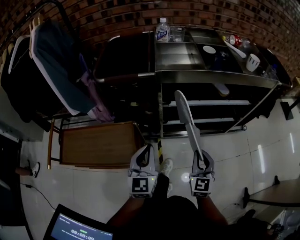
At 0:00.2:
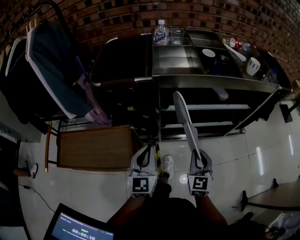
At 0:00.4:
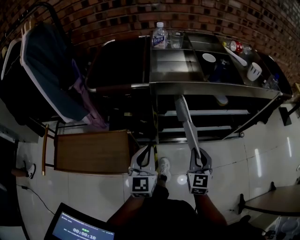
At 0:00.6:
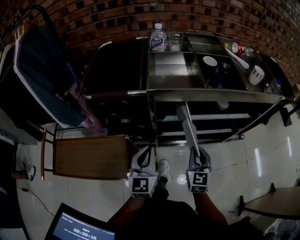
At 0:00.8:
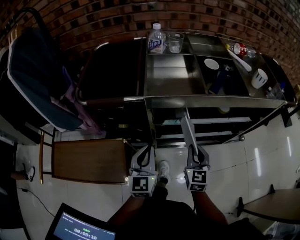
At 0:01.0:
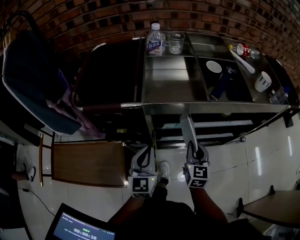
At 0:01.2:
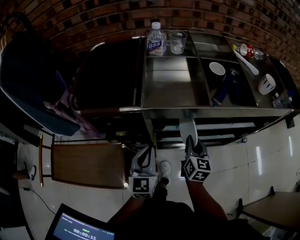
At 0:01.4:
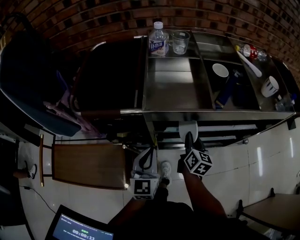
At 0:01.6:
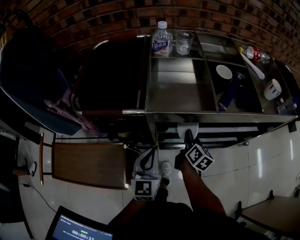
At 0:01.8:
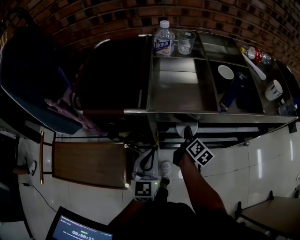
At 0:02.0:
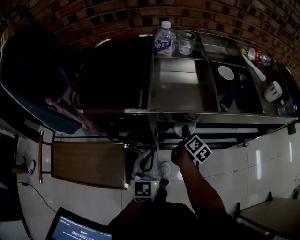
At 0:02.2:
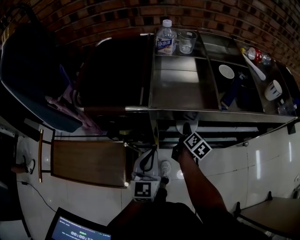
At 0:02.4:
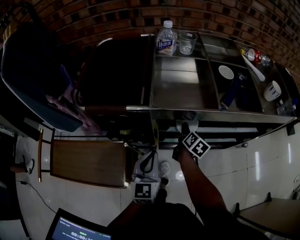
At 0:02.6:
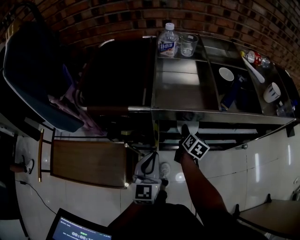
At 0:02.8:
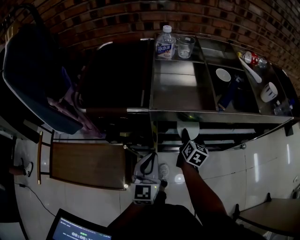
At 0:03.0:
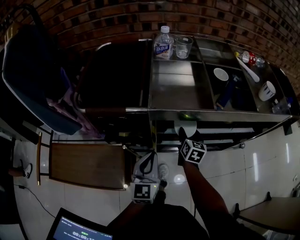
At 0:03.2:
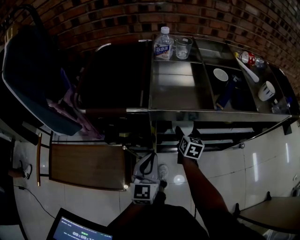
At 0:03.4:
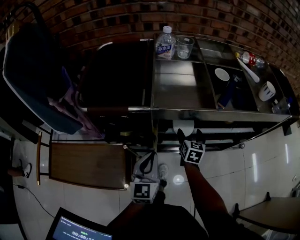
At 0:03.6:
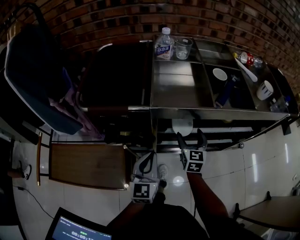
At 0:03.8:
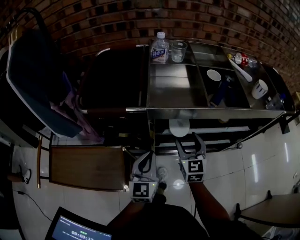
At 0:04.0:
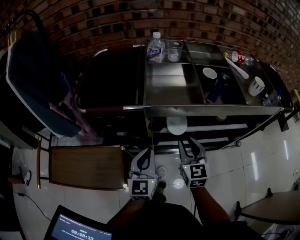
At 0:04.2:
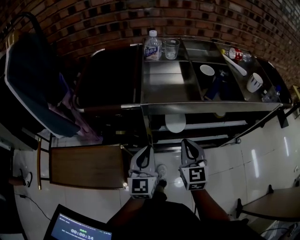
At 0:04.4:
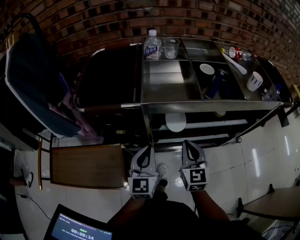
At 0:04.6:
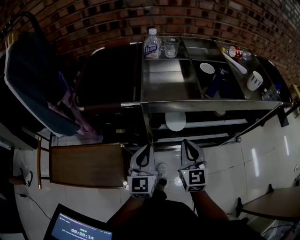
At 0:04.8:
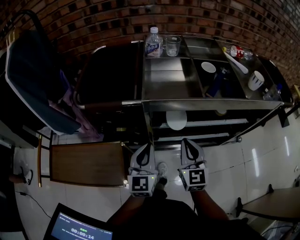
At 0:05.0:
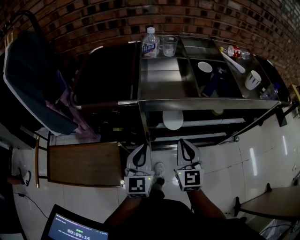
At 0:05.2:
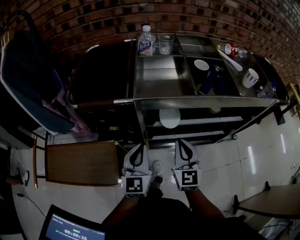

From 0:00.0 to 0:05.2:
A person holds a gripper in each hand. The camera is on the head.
From 0:00.0 to 0:01.8: The left gripper goes about 20 cm forward. Meanwhile the right gripper goes roughly 30 cm forward, and rotates around the line of its fingers by approximately 60 degrees, clockwise from behind.
From 0:01.8 to 0:03.4: The right gripper rolls counterclockwise, seen from behind, by roughly 40 degrees, and opens.
From 0:03.4 to 0:05.2: The right gripper is displaced upward and backward by approximately 20 cm, turns by roughly 30 degrees, and closes its fingers.

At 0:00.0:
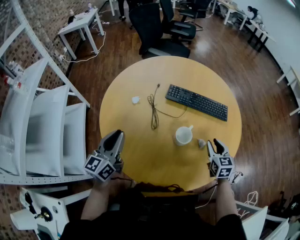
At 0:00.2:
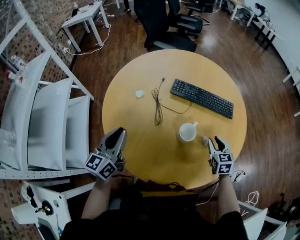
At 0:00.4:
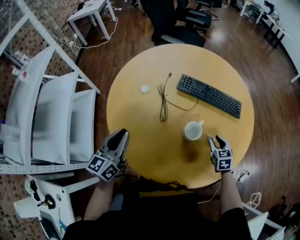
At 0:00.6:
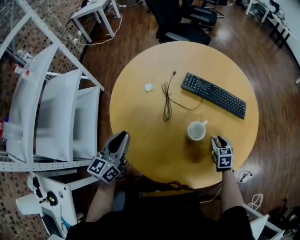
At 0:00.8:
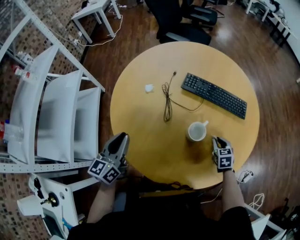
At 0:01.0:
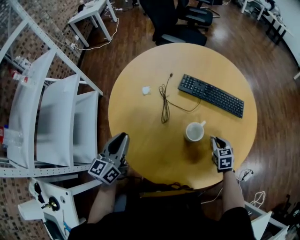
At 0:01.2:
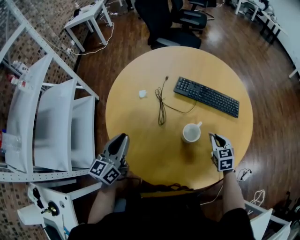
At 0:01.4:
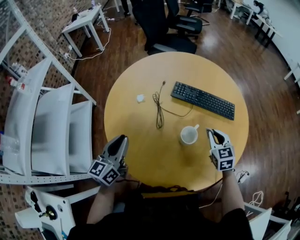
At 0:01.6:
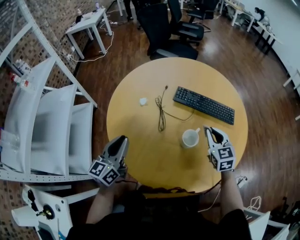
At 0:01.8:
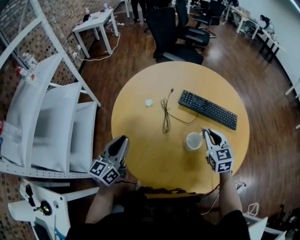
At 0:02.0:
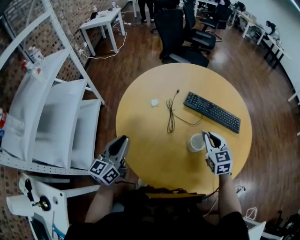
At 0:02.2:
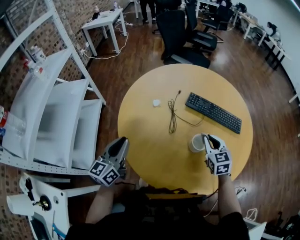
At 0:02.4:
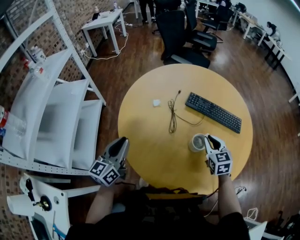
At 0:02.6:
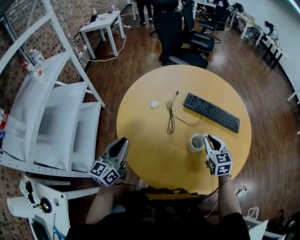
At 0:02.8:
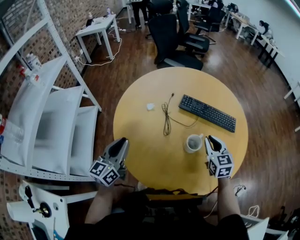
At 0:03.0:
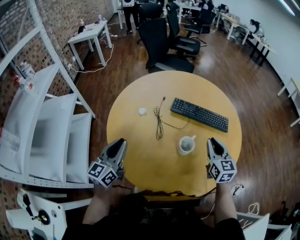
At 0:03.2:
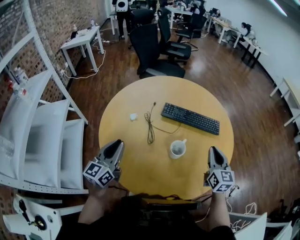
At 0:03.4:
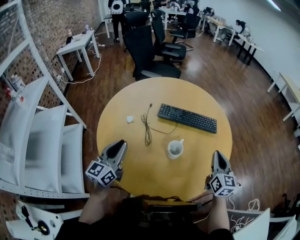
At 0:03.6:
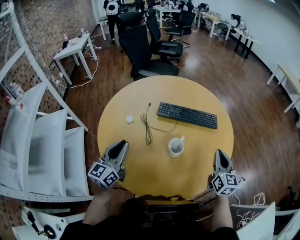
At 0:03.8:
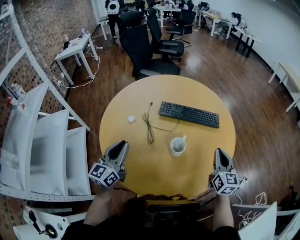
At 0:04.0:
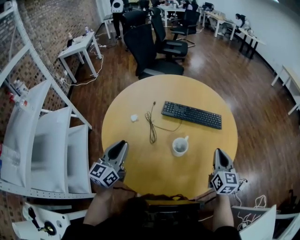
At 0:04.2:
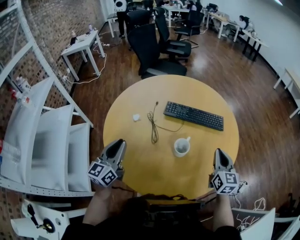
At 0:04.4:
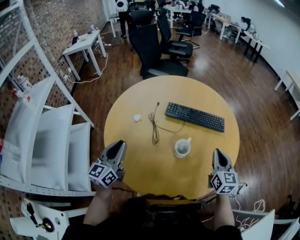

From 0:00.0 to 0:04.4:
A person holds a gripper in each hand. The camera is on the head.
From 0:00.0 to 0:01.4: The right gripper is displaced forward by some 5 cm, goes downward and returns, approximately 10 cm each way, and closes its fingers.
From 0:01.4 to 0:03.0: The right gripper heads upward, covering approximately 10 cm, and goes to the left and returns, approximately 10 cm each way.
From 0:03.0 to 0:04.4: The right gripper moves to the right, roughly 5 cm.

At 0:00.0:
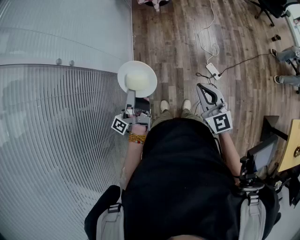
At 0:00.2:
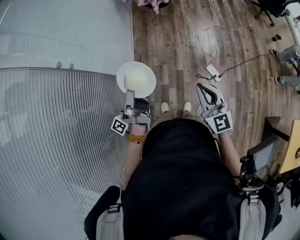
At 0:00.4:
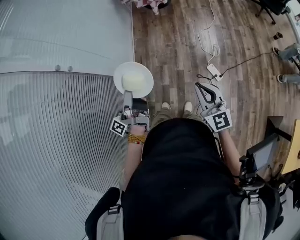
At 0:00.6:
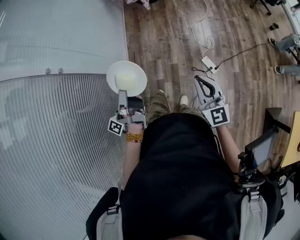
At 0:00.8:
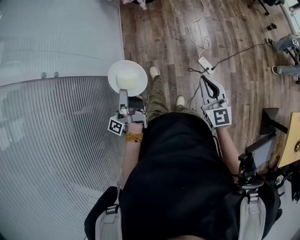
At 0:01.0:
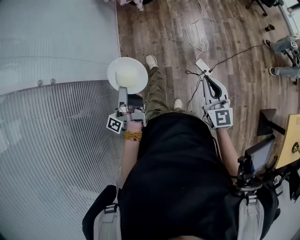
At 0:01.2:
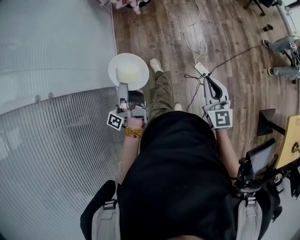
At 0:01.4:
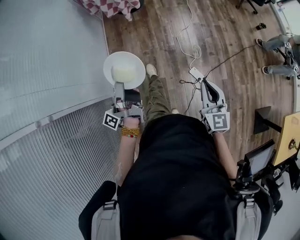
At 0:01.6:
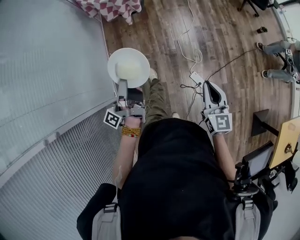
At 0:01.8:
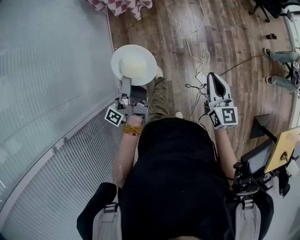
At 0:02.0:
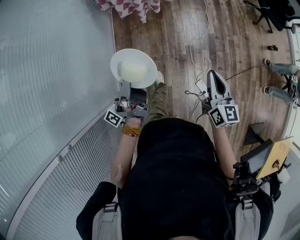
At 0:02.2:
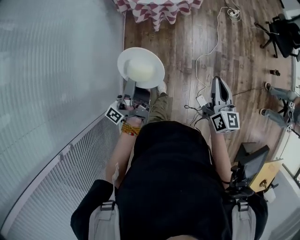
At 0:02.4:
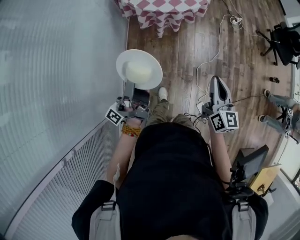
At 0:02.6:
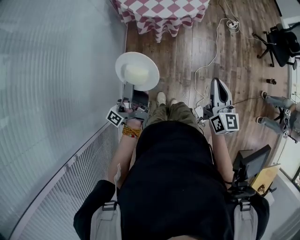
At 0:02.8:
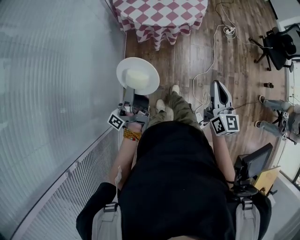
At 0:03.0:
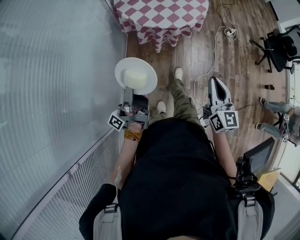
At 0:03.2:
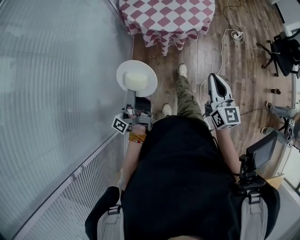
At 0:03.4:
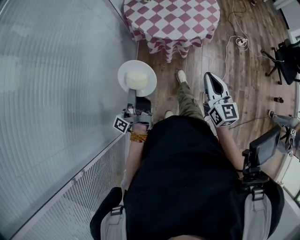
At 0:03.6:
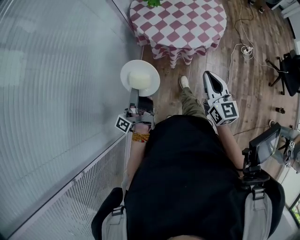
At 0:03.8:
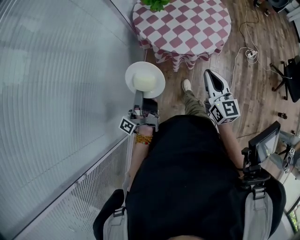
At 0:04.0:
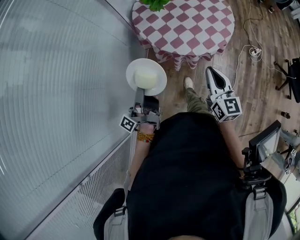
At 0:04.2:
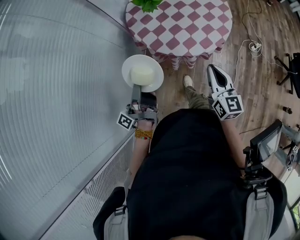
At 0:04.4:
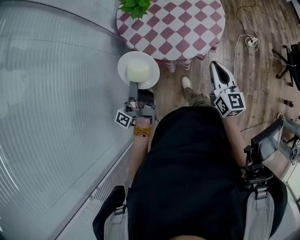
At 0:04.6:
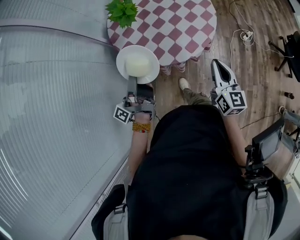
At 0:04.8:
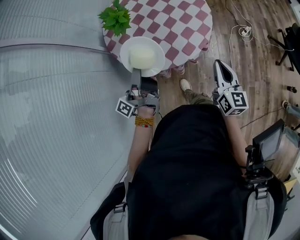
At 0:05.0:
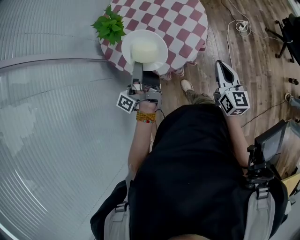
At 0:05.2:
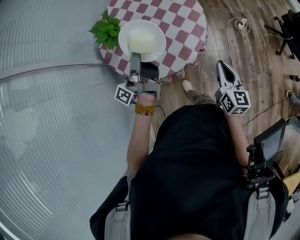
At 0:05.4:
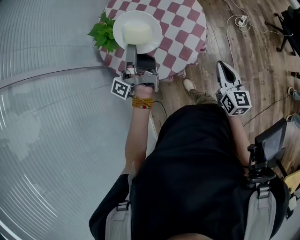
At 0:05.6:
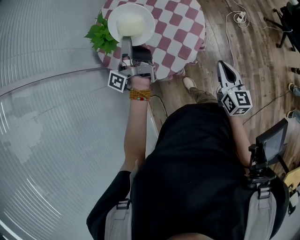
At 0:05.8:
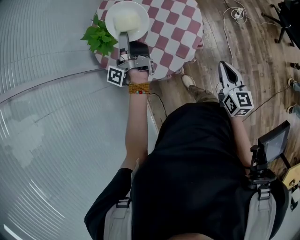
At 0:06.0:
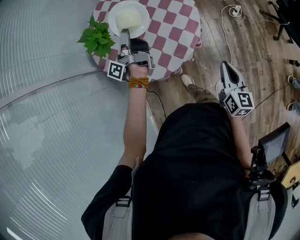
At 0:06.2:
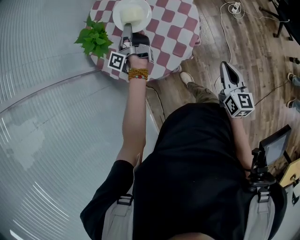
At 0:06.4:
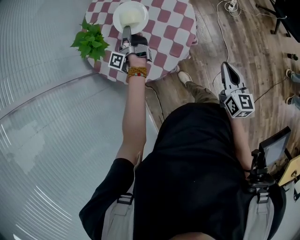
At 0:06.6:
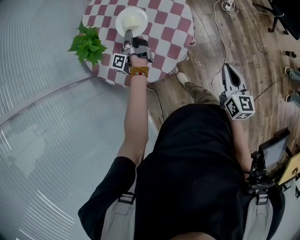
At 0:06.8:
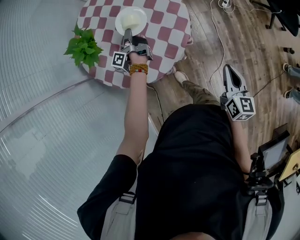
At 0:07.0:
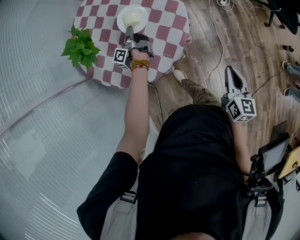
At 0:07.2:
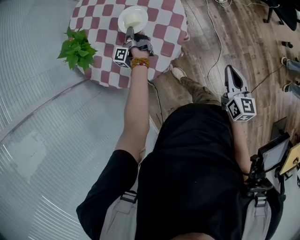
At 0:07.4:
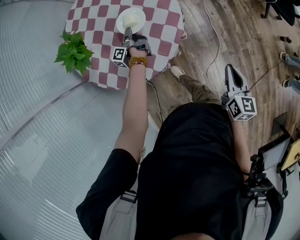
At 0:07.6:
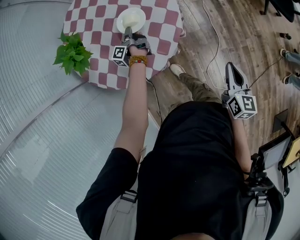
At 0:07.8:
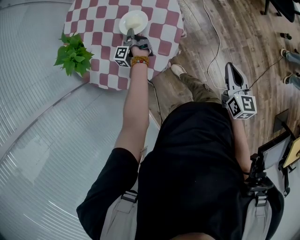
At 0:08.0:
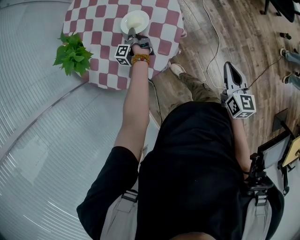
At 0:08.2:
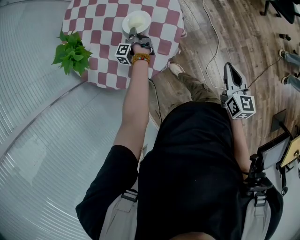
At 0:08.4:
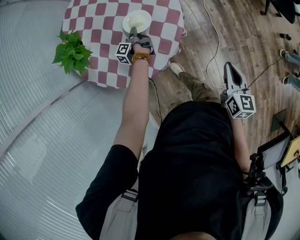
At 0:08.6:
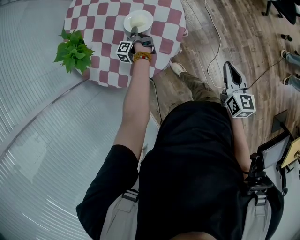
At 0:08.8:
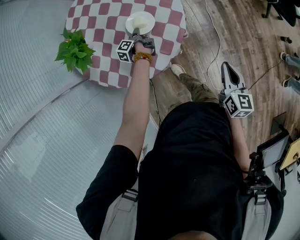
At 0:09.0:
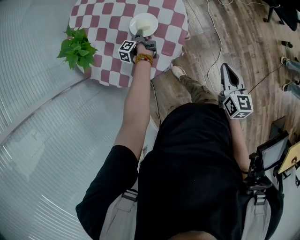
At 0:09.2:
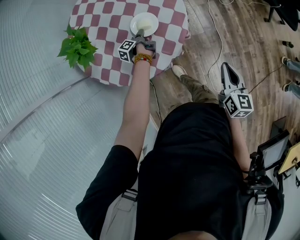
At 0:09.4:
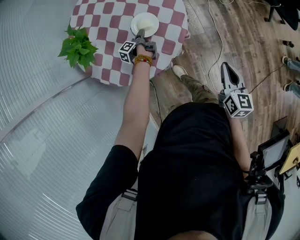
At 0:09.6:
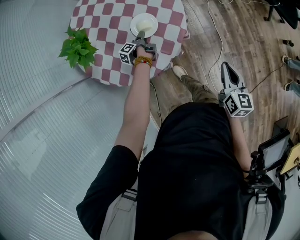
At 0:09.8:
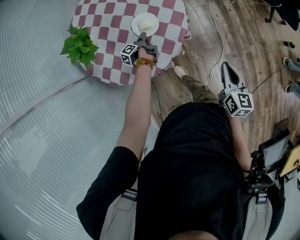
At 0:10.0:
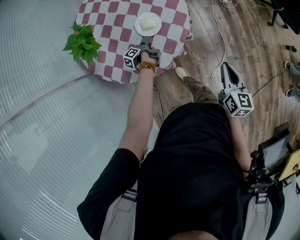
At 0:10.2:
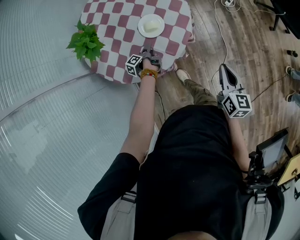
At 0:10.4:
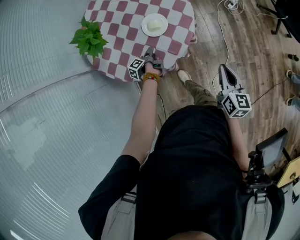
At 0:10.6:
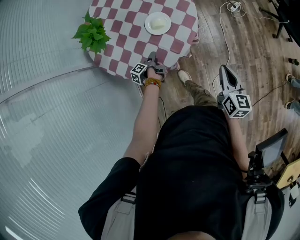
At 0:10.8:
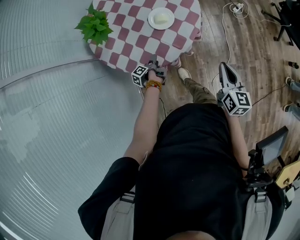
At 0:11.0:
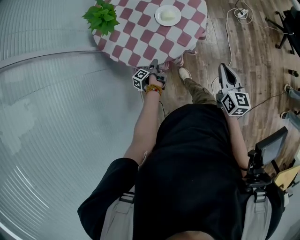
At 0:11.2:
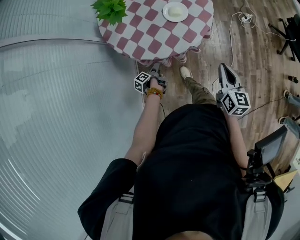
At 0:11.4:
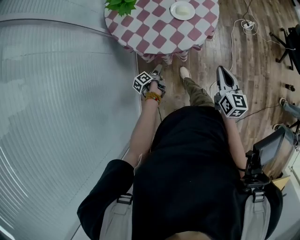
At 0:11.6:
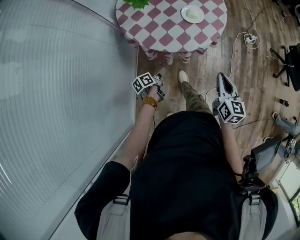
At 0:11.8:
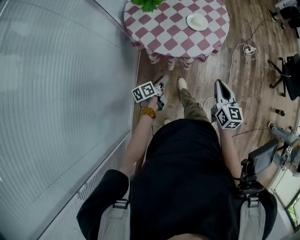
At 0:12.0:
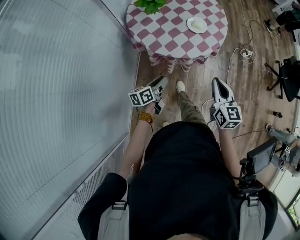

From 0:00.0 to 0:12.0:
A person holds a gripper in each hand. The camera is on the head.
From 0:00.0 to 0:01.6: The right gripper changes place by approximately 30 cm, and rotates roughly 30 degrees.
From 0:01.6 to 0:03.0: The right gripper ends up some 40 cm from where it was.
From 0:03.0 to 0:04.4: The right gripper moves roughly 40 cm.
From 0:04.4 to 0:06.0: The right gripper moves approximately 20 cm, and turns by roughly 30 degrees.
From 0:06.0 to 0:07.6: The right gripper shifts by roughly 10 cm.
From 0:10.4 to 0:12.0: The right gripper shifts by roughly 25 cm, and rotates roughly 30 degrees.

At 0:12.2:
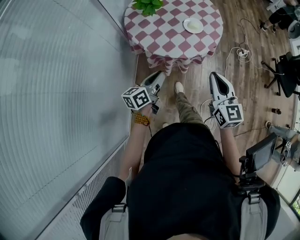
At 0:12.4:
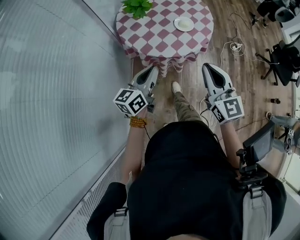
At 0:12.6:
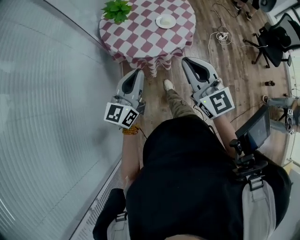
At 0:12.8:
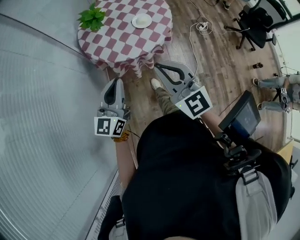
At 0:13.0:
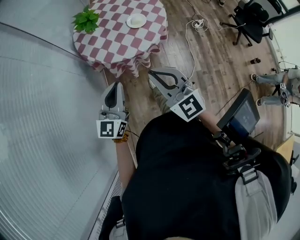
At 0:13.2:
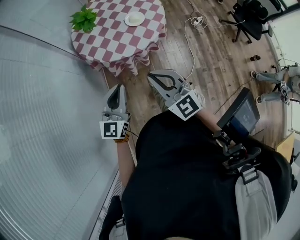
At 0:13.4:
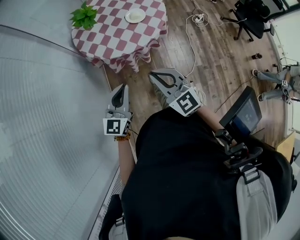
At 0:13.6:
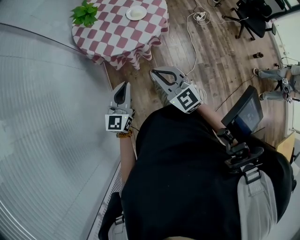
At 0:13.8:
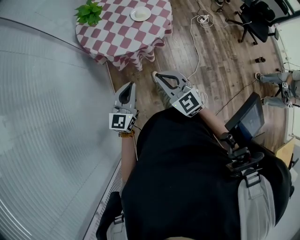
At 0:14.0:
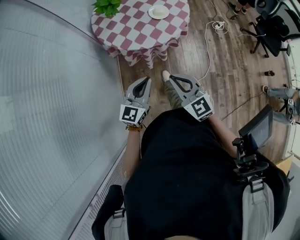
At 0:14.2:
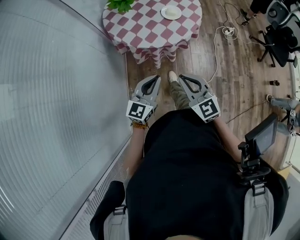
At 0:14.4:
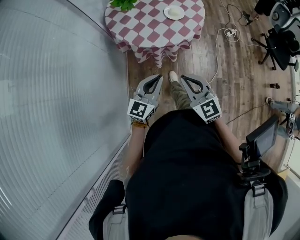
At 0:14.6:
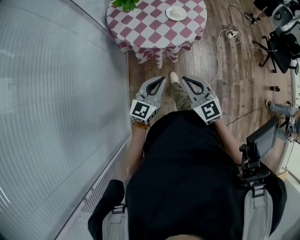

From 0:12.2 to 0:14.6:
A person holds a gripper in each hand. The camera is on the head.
From 0:12.2 to 0:13.4: The right gripper reaches some 10 cm upward, then returns, and swivels approximately 20 degrees.
From 0:13.4 to 0:14.6: The right gripper shifts about 5 cm downward.
